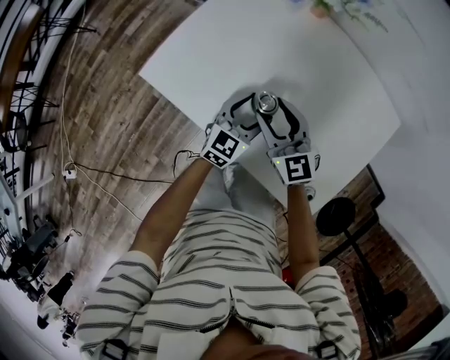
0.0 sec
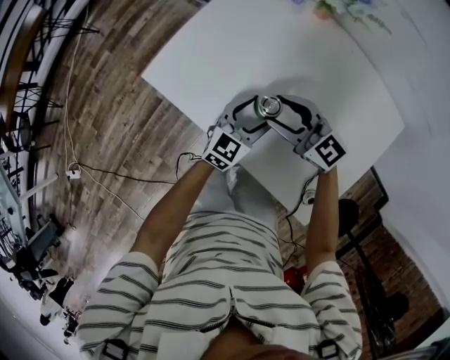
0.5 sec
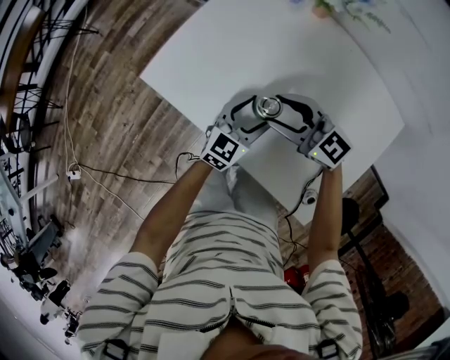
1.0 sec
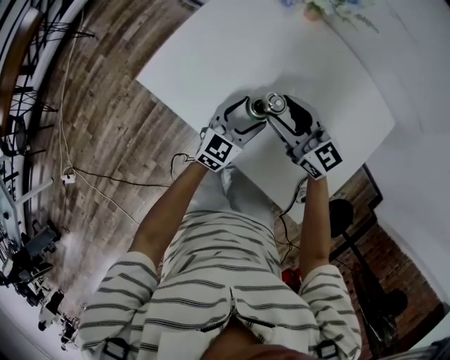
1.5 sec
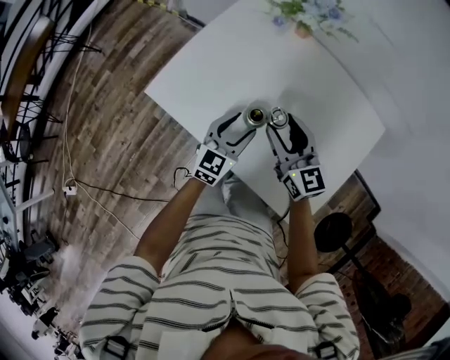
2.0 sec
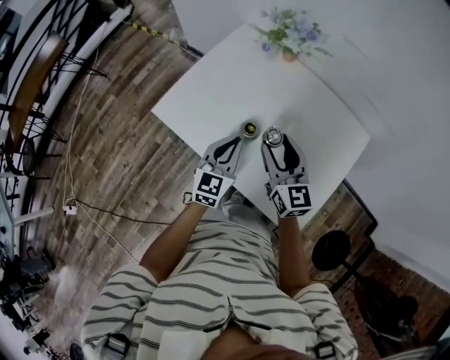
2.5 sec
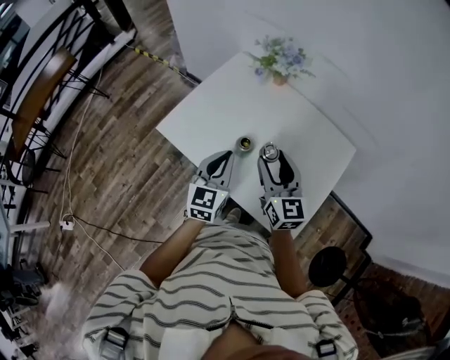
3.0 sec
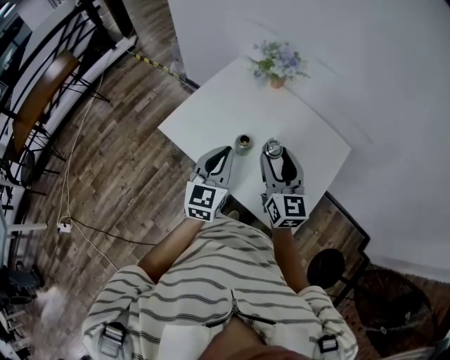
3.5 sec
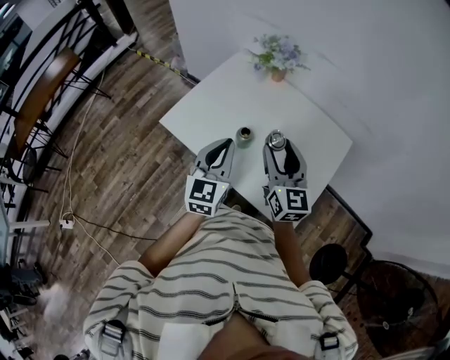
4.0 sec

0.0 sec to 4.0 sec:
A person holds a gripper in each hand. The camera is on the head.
0.0 sec to 2.0 sec: The two grippers go approximately 5 cm upward.
2.0 sec to 4.0 sec: The two grippers go some 20 cm upward and backward. The left gripper closes up.

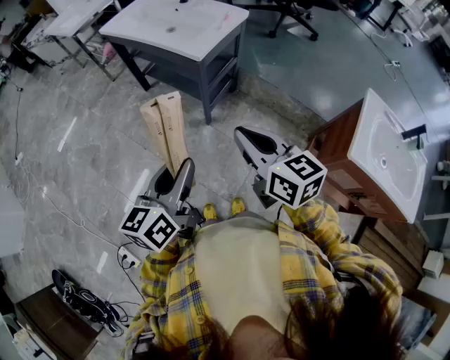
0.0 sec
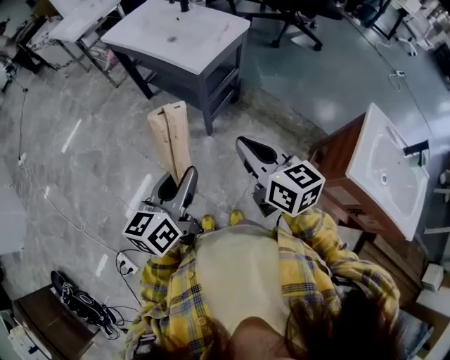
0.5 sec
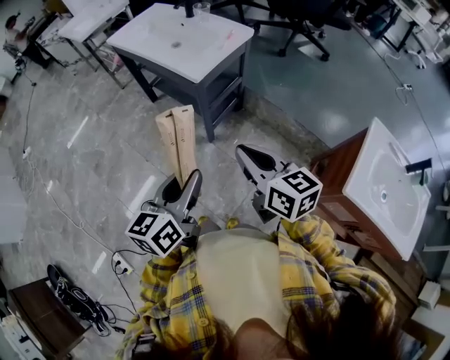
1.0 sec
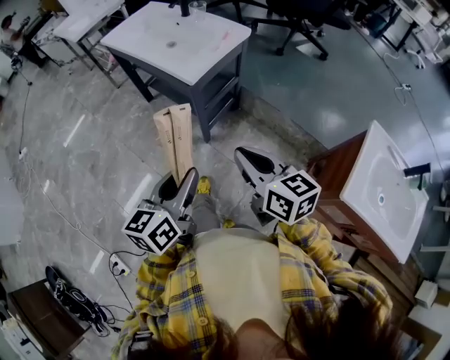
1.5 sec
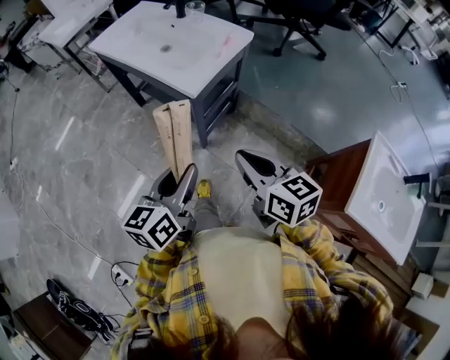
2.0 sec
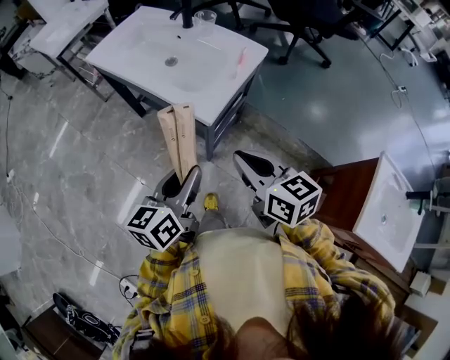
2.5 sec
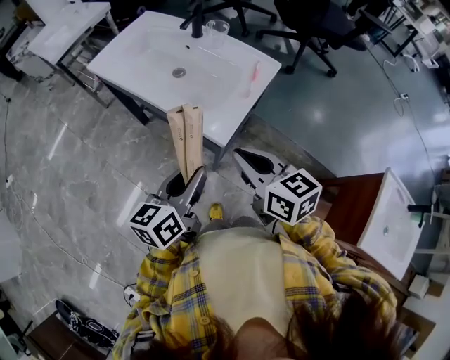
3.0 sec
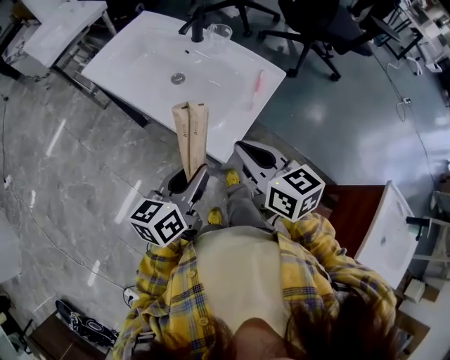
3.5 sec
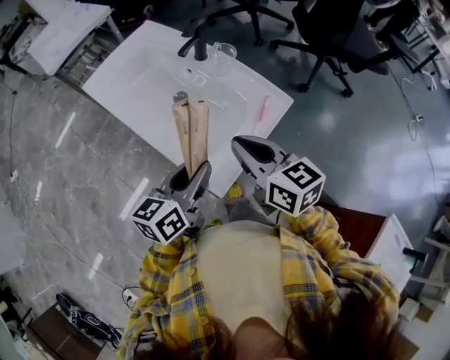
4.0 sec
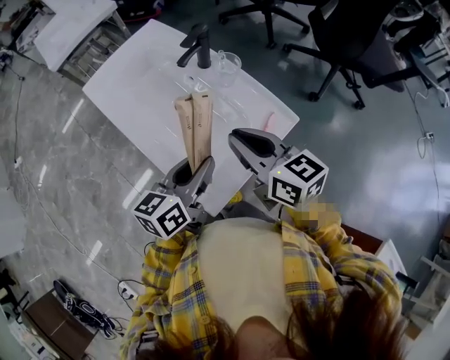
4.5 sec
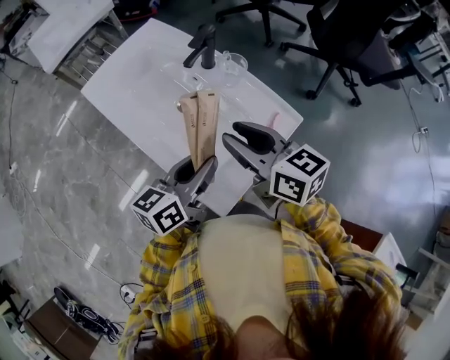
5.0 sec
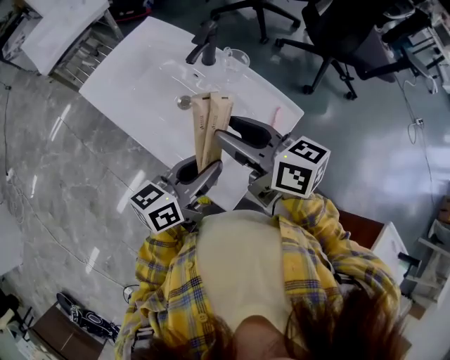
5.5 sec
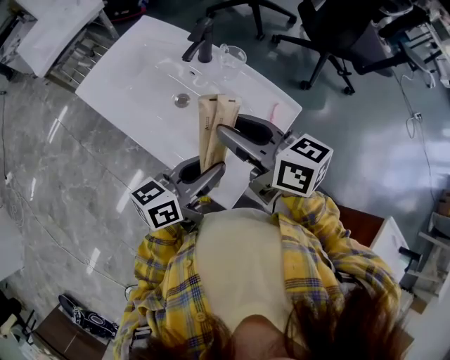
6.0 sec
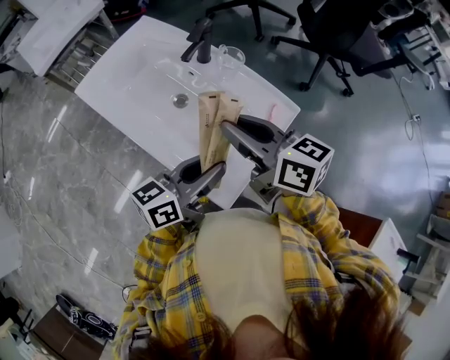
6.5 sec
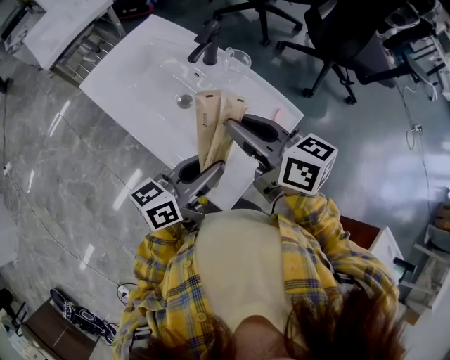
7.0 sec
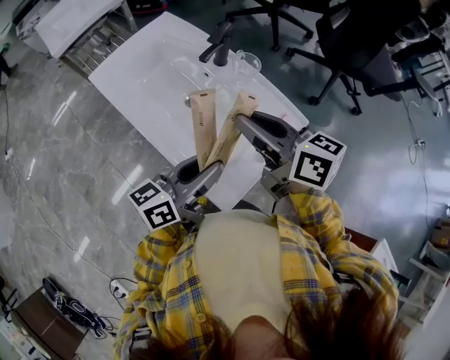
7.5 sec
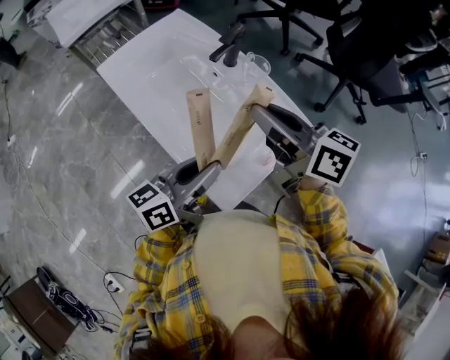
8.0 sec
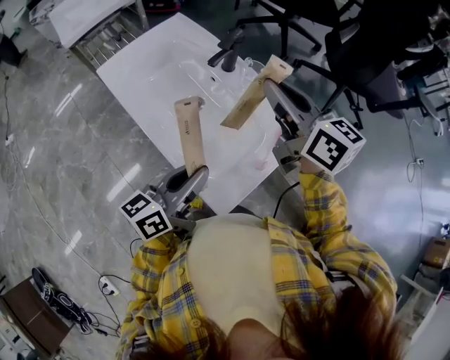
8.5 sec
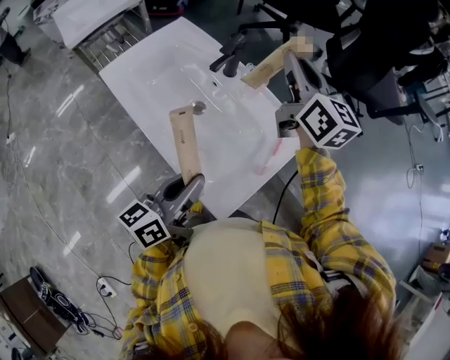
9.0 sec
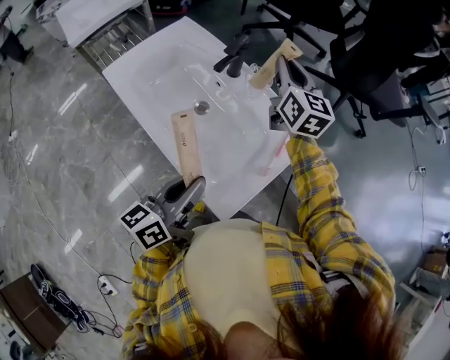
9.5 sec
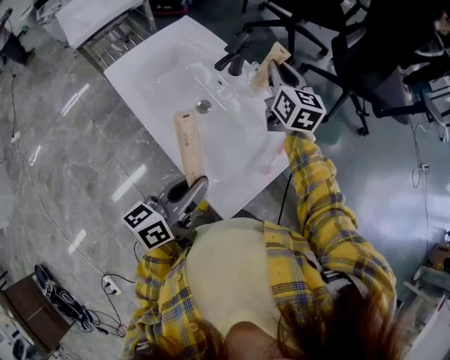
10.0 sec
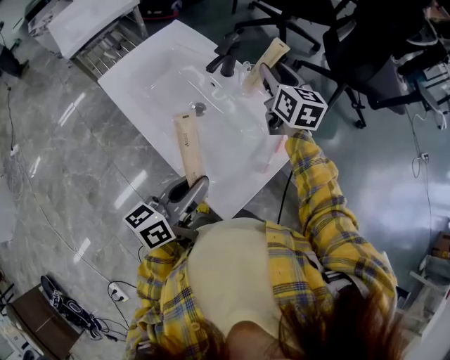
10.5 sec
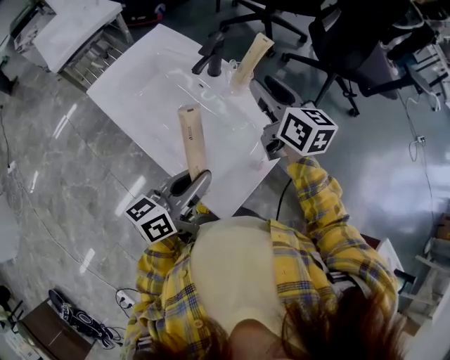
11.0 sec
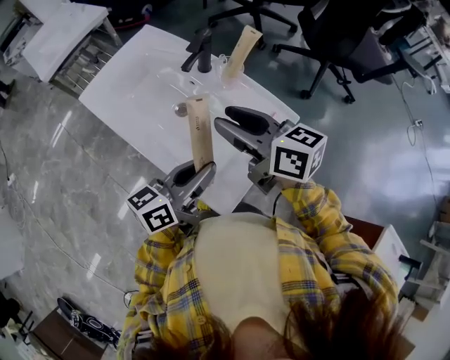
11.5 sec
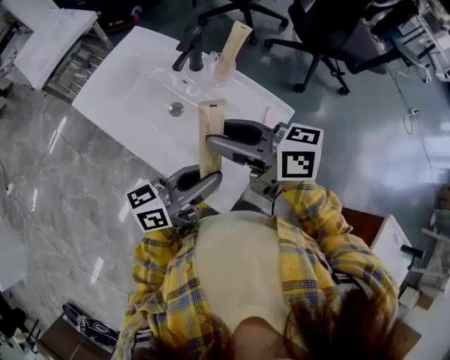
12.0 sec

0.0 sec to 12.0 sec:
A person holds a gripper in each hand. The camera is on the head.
0.0 sec to 2.0 sec: Both grippers move forward, some 15 cm.
2.0 sec to 4.0 sec: Both grippers travel together forward, roughly 35 cm.
4.0 sec to 6.0 sec: The right gripper heads forward, covering some 10 cm, and opens its fingers; the left gripper turns by roughly 20 degrees.
6.0 sec to 8.0 sec: The right gripper ends up some 5 cm from where it was, and closes its fingers.
8.0 sec to 10.0 sec: The right gripper travels forward by roughly 20 cm, and turns by some 40 degrees.
10.0 sec to 12.0 sec: The right gripper shifts by about 25 cm, changes its angle by about 50 degrees, and opens. The left gripper changes place by some 5 cm, and rotates roughly 30 degrees.

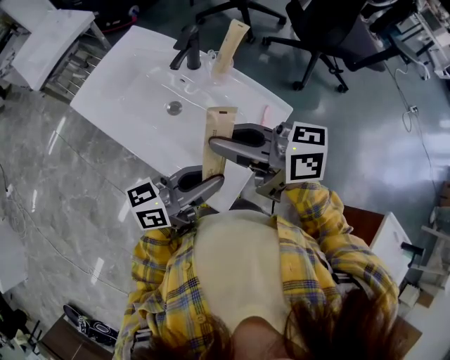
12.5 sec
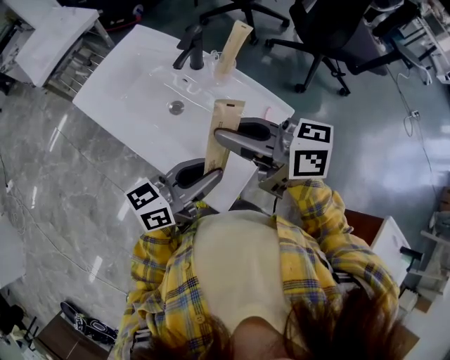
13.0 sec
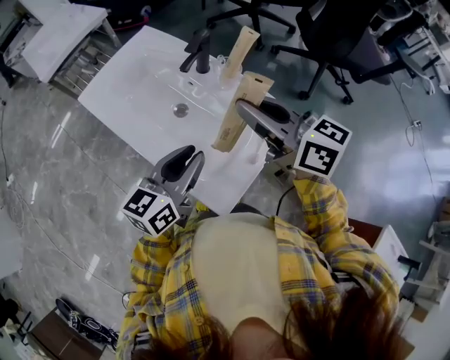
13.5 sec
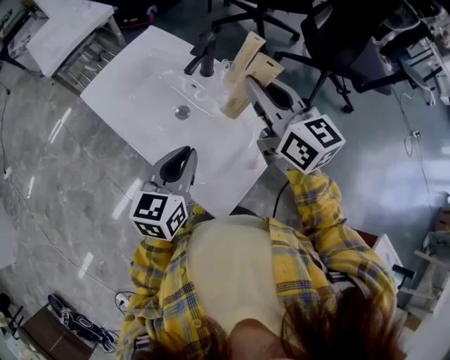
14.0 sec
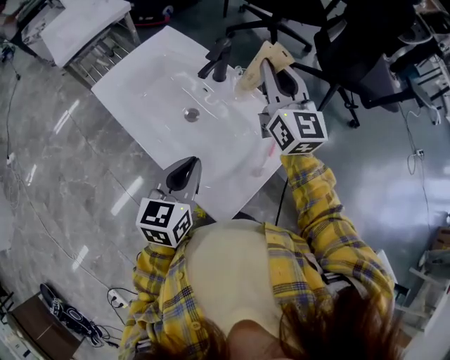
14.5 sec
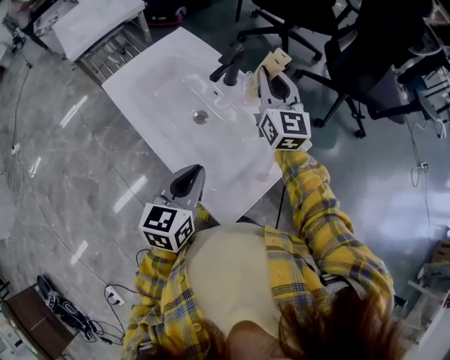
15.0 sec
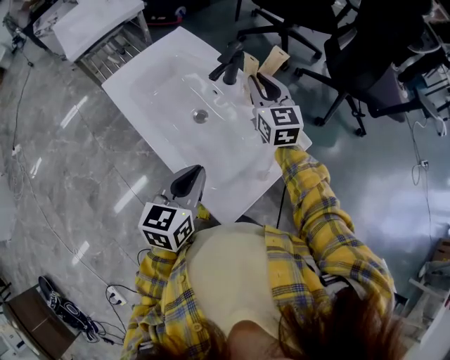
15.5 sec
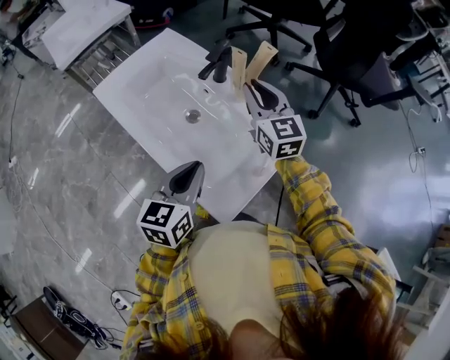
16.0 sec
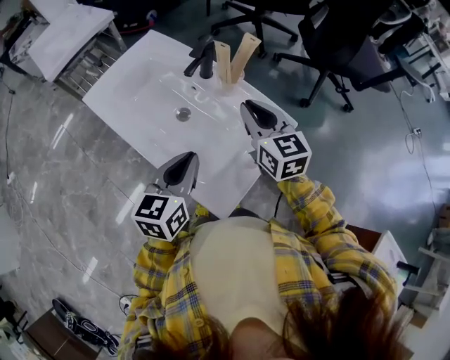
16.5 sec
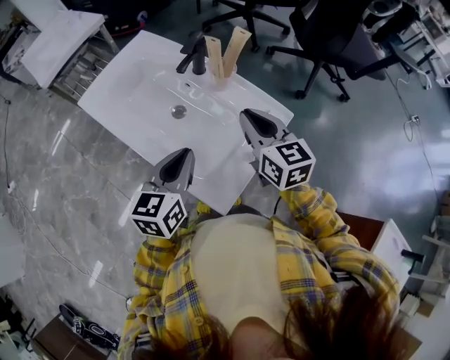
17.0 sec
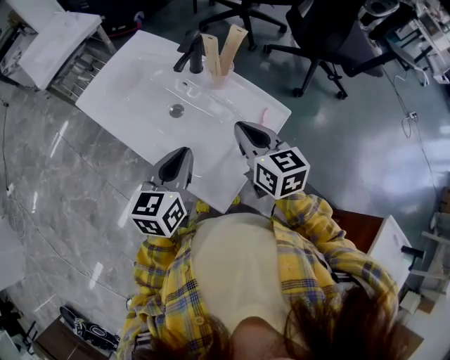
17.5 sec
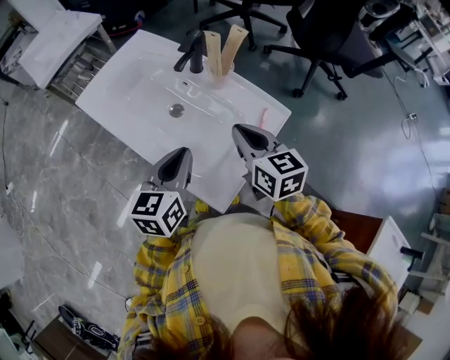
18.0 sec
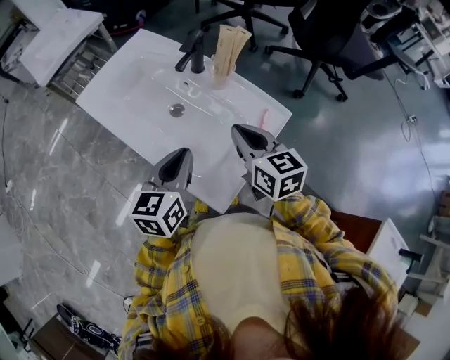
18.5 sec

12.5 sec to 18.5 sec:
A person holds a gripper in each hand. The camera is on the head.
12.5 sec to 14.5 sec: The left gripper moves about 10 cm, and changes its angle by about 60 degrees; the right gripper changes place by roughly 20 cm, and changes its angle by approximately 60 degrees.
14.5 sec to 16.5 sec: The right gripper goes about 15 cm downward and backward, and changes its angle by about 20 degrees.
16.5 sec to 18.5 sec: The right gripper travels backward by some 5 cm.

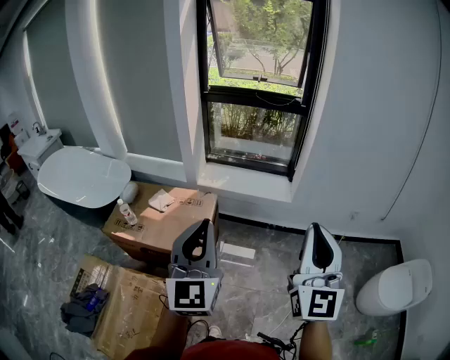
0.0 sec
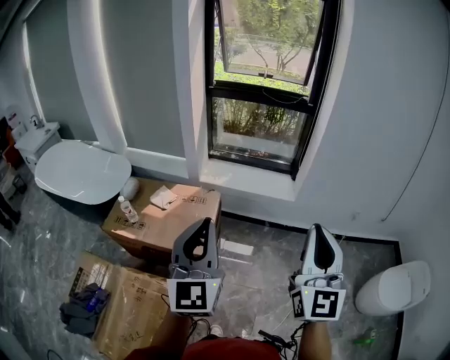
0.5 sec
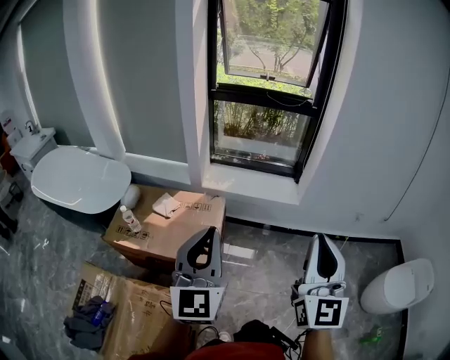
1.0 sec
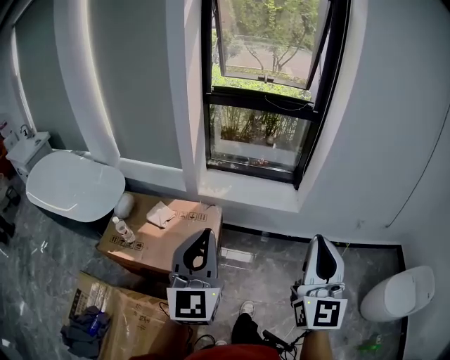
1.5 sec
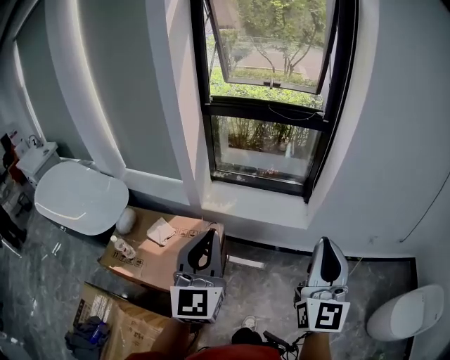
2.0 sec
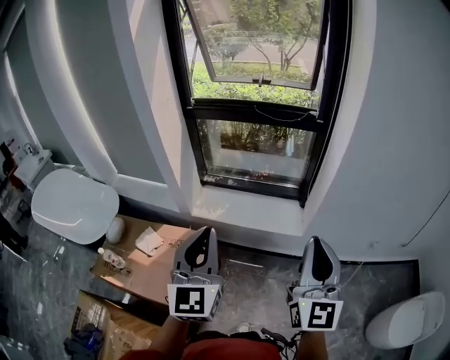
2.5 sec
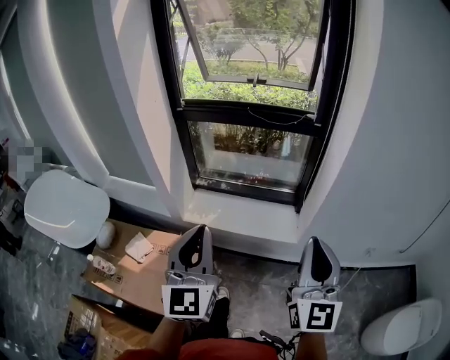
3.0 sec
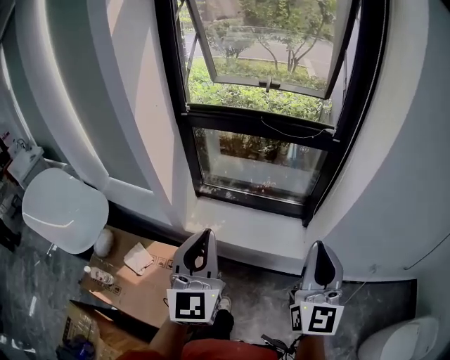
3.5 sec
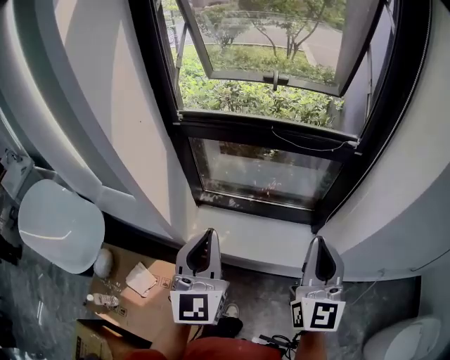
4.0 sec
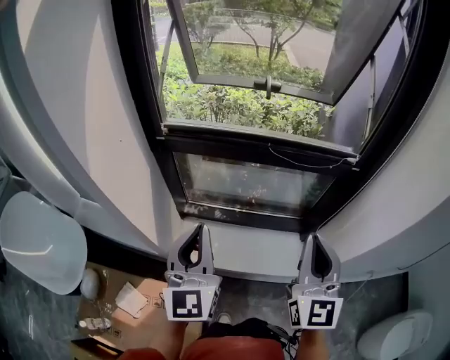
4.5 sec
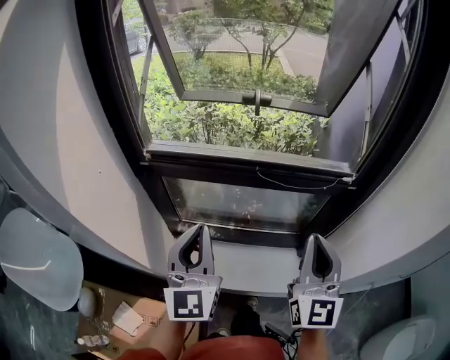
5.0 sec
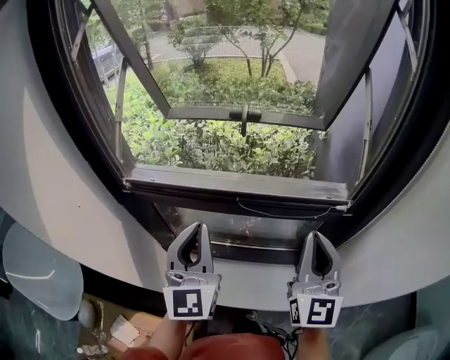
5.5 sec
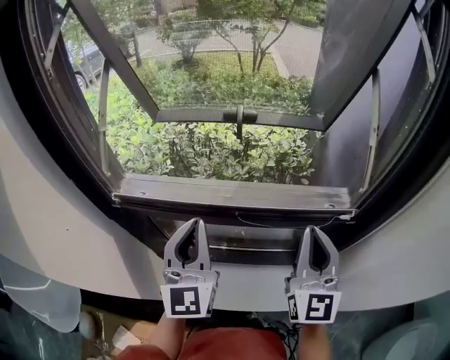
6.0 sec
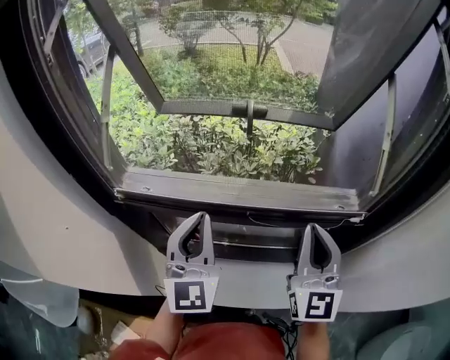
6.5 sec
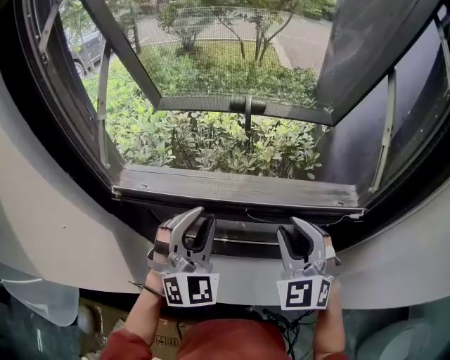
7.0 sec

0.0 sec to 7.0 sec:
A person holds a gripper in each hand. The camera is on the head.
0.0 sec to 2.0 sec: The grippers both shift forward by some 25 cm.
2.0 sec to 3.5 sec: The two grippers go approximately 25 cm forward.
3.5 sec to 5.0 sec: Both grippers travel together forward, roughly 30 cm.
5.0 sec to 7.0 sec: The two grippers go approximately 15 cm forward. The right gripper rotates some 40 degrees, and opens. The left gripper rolls clockwise, seen from behind, by some 40 degrees, and opens.
